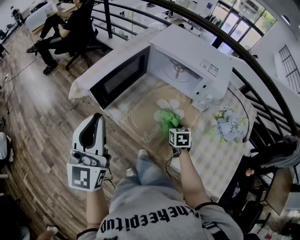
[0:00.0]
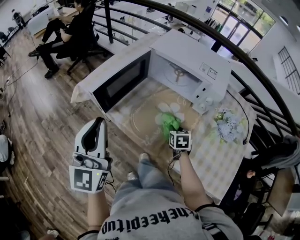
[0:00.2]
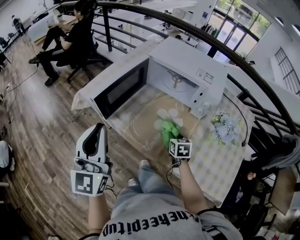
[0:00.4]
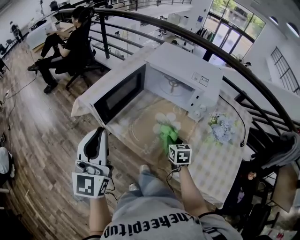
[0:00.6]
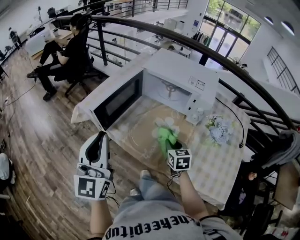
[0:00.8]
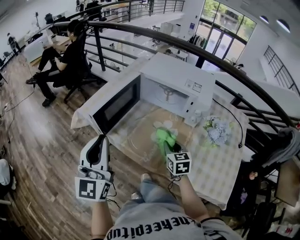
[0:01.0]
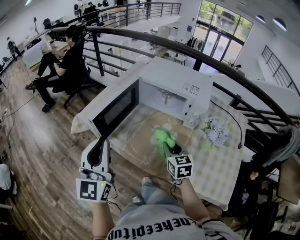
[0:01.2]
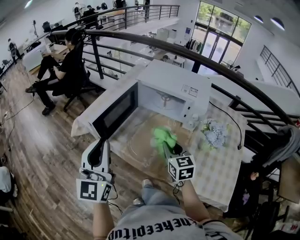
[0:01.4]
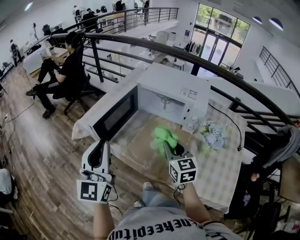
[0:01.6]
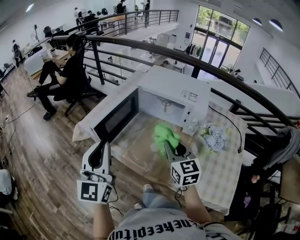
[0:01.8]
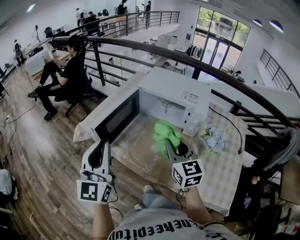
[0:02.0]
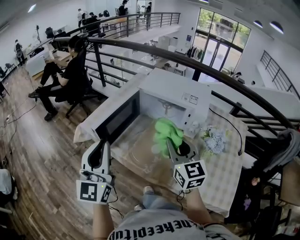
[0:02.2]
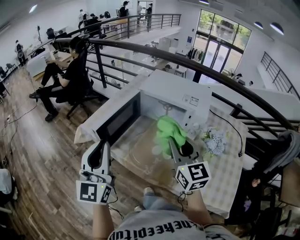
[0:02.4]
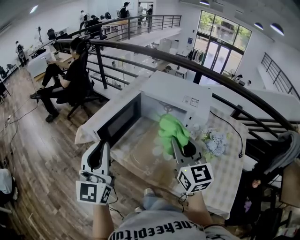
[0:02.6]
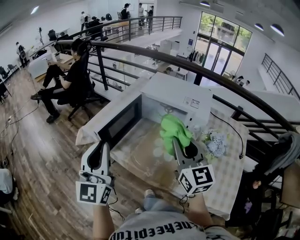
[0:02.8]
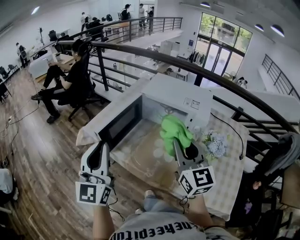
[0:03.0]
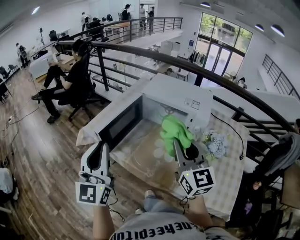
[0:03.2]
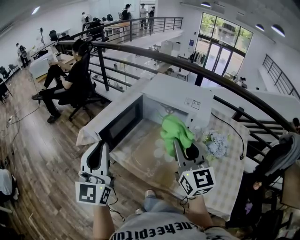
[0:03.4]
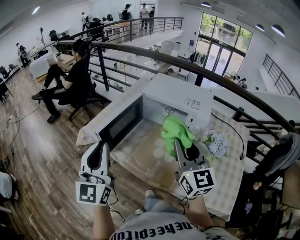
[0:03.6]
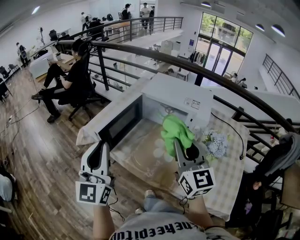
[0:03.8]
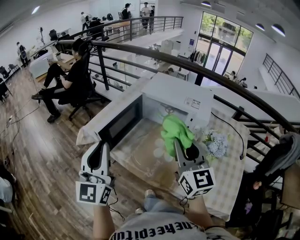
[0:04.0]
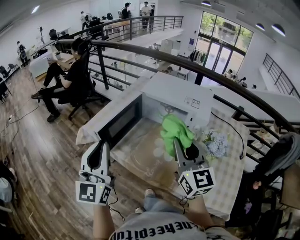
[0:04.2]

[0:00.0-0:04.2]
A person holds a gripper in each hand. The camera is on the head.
0:00.0 to 0:01.4: The right gripper shifts roughly 20 cm upward, and rotates approximately 30 degrees.
0:01.4 to 0:02.8: The right gripper goes roughly 20 cm upward, and turns by roughly 30 degrees.
0:02.8 to 0:04.2: Both grippers stay put.

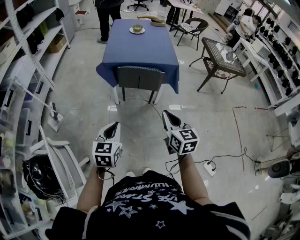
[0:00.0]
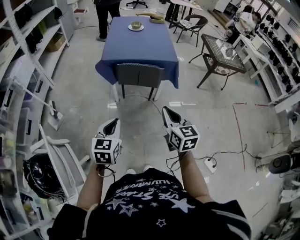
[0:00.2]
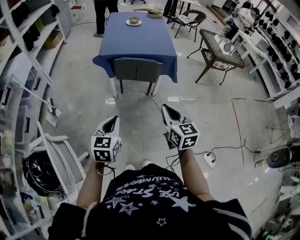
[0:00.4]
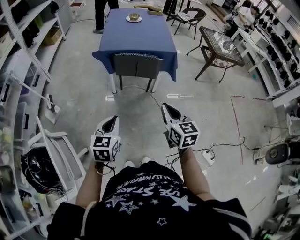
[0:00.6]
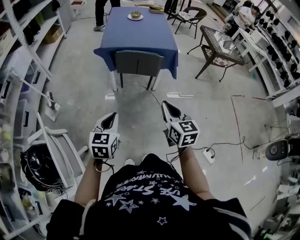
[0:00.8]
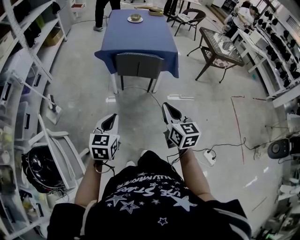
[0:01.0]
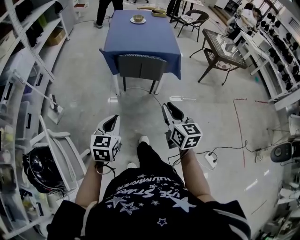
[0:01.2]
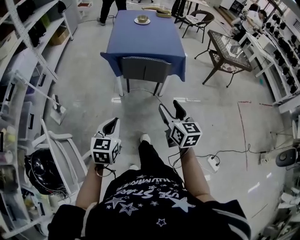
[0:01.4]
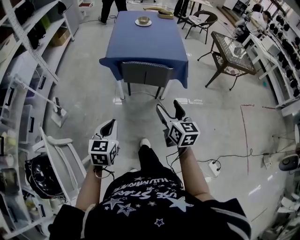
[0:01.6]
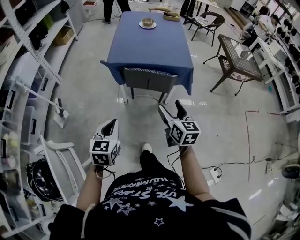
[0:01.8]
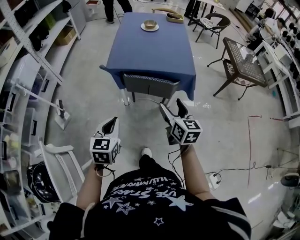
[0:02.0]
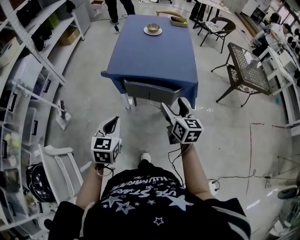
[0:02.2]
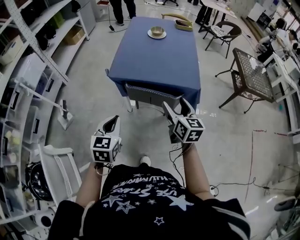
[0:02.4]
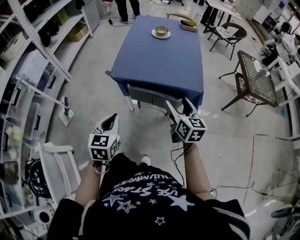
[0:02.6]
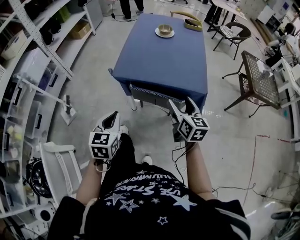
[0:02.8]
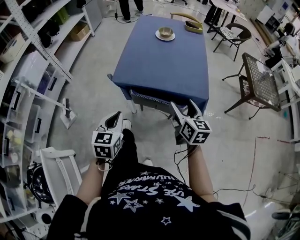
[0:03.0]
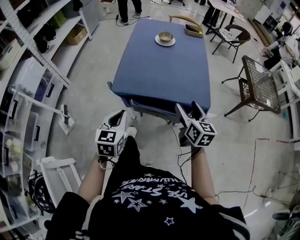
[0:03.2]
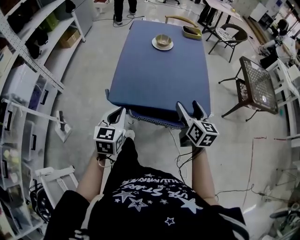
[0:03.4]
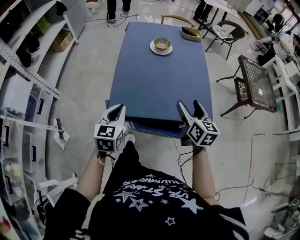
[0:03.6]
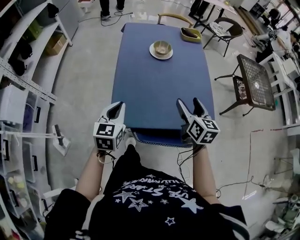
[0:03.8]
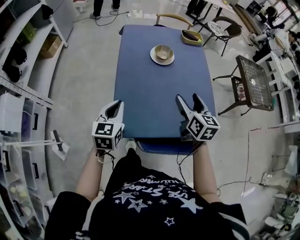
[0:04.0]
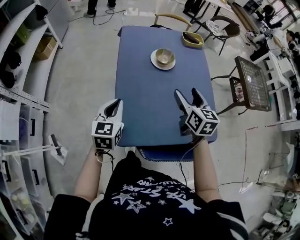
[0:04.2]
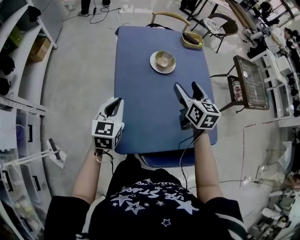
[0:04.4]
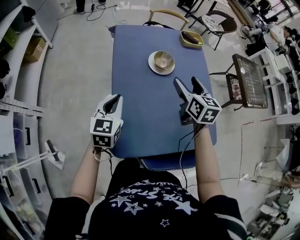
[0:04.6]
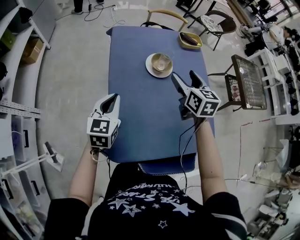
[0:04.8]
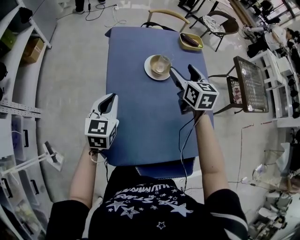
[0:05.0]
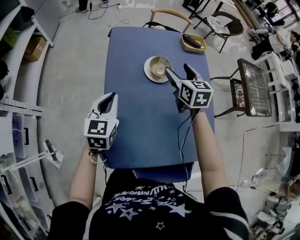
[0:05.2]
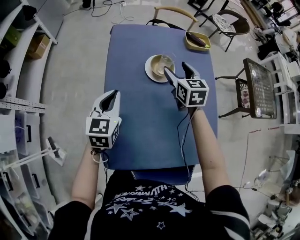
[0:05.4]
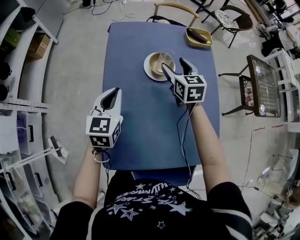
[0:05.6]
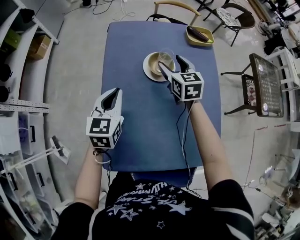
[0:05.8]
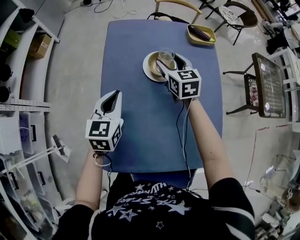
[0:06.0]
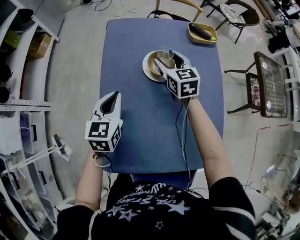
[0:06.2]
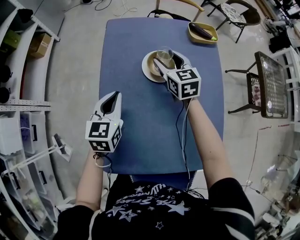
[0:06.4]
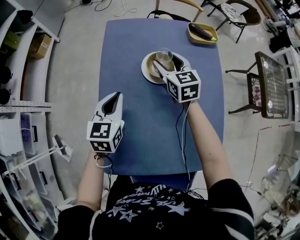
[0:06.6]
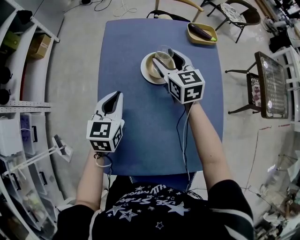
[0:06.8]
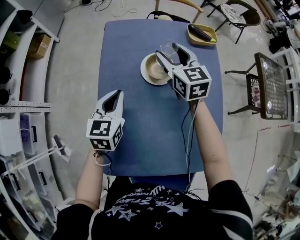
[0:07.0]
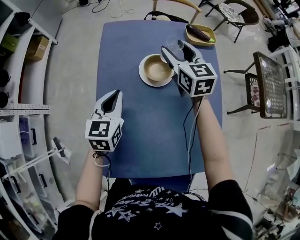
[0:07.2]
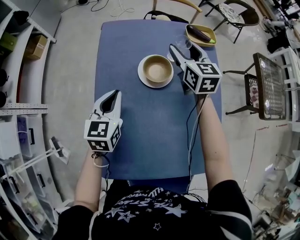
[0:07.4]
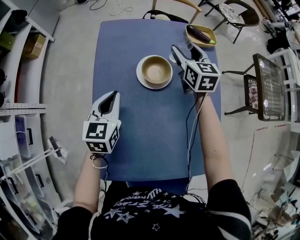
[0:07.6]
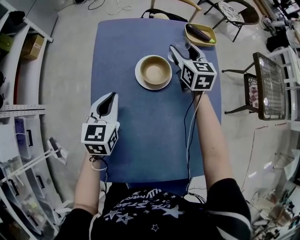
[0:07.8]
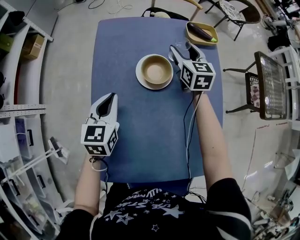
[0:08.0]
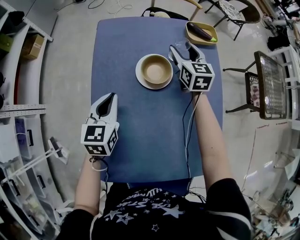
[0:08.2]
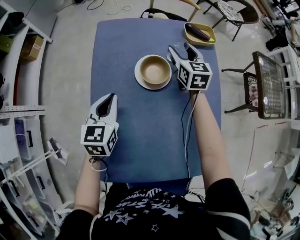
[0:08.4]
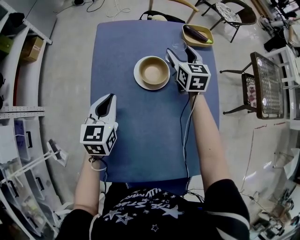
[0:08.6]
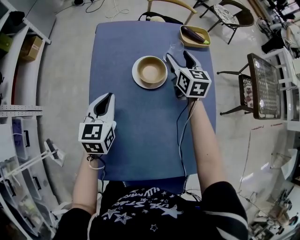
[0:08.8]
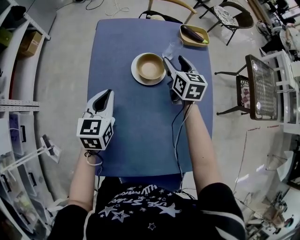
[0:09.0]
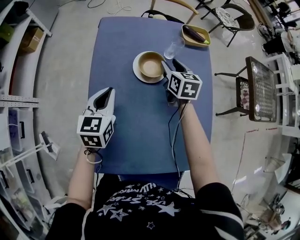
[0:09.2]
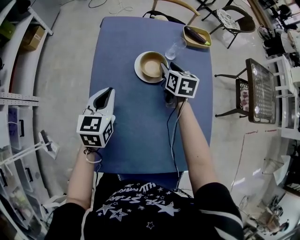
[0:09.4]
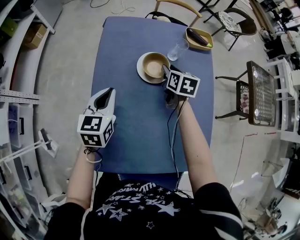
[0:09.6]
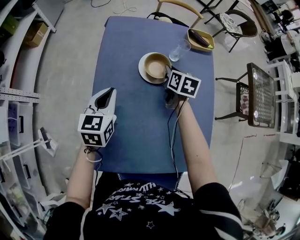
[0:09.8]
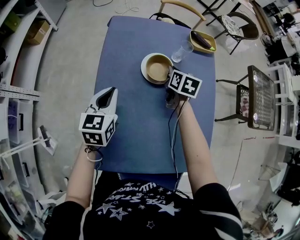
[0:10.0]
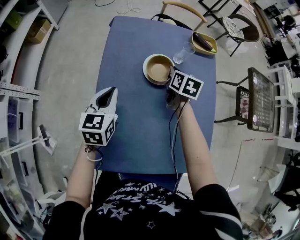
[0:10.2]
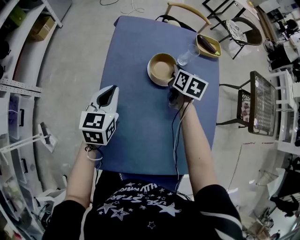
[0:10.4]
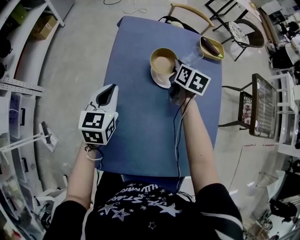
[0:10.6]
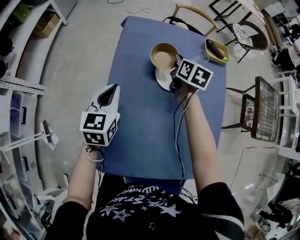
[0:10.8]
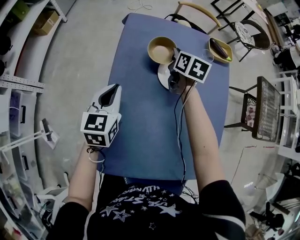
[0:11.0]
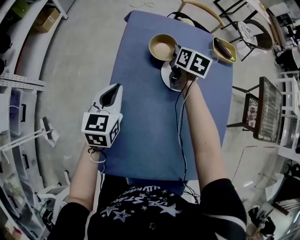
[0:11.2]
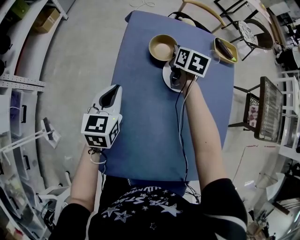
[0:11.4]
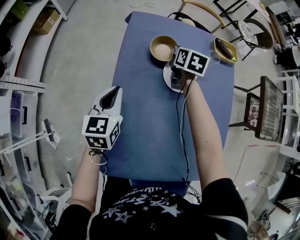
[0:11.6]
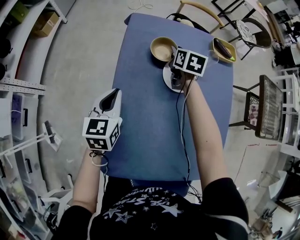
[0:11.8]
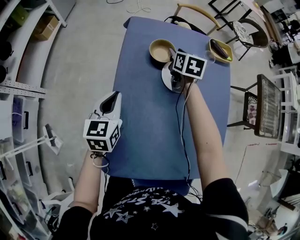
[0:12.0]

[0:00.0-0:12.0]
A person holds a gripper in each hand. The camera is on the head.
0:00.0 to 0:01.6: The right gripper goes about 5 cm forward, and opens; the left gripper shifts by roughly 5 cm.
0:01.6 to 0:03.0: The grippers both shift forward by some 30 cm.
0:03.0 to 0:04.4: The two grippers travel together, forward, roughly 40 cm.
0:04.4 to 0:06.0: The left gripper is displaced forward and to the right by roughly 15 cm. Meanwhile the right gripper travels forward and downward by approximately 25 cm.
0:06.0 to 0:07.6: The right gripper heads to the right and forward, covering roughly 10 cm.
0:07.6 to 0:09.0: The right gripper shifts by approximately 5 cm.
0:09.0 to 0:10.4: The right gripper moves some 5 cm, and closes its fingers.
0:10.4 to 0:12.0: The right gripper shifts some 10 cm forward and to the left, and opens up. Meanwhile the left gripper shifts approximately 5 cm to the left.

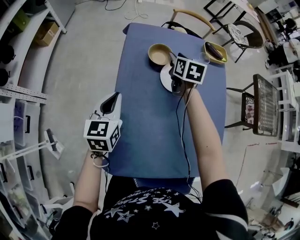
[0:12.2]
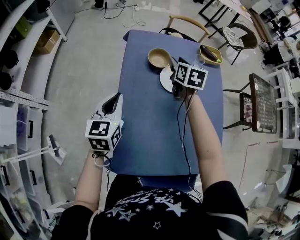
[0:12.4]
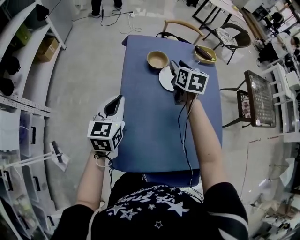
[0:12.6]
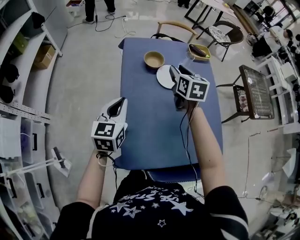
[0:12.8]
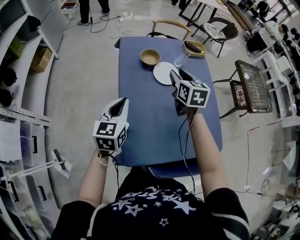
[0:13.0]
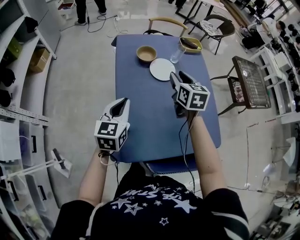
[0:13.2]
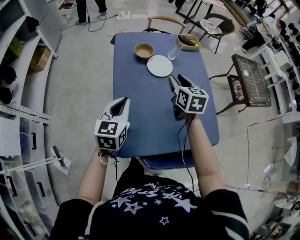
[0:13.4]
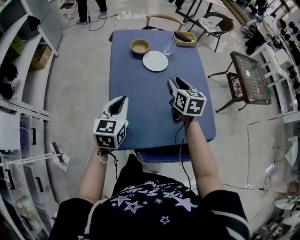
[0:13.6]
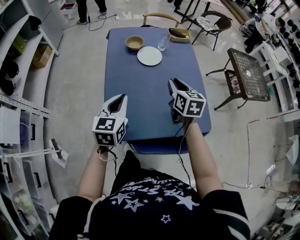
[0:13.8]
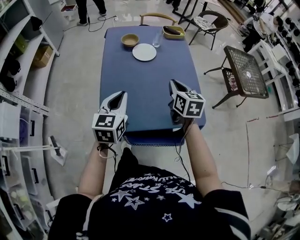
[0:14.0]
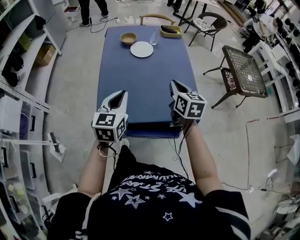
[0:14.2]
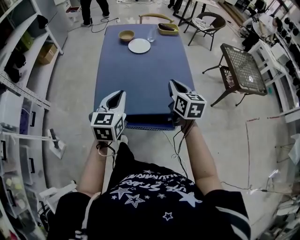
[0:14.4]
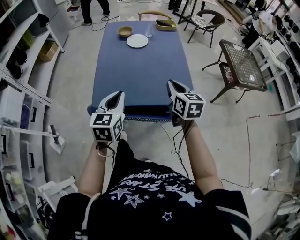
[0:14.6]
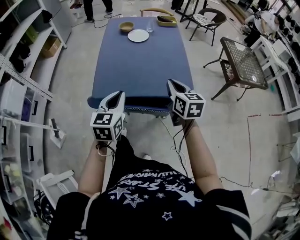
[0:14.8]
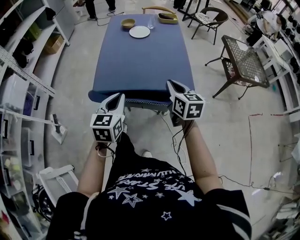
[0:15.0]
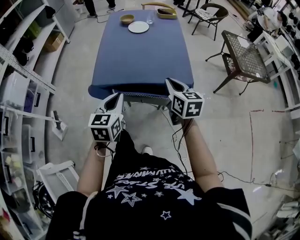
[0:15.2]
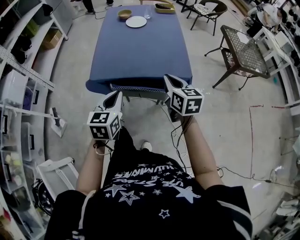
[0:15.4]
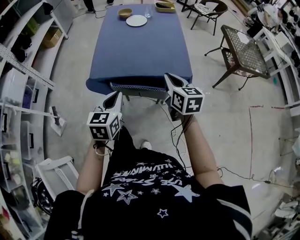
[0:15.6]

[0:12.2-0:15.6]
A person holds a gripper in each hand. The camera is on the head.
0:12.2 to 0:13.8: The right gripper heads backward and to the right, covering roughly 35 cm, while the left gripper goes some 20 cm backward and to the right.
0:13.8 to 0:15.6: The grippers both shift backward by roughly 30 cm.

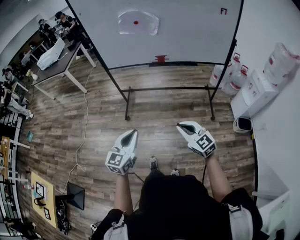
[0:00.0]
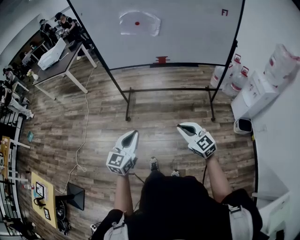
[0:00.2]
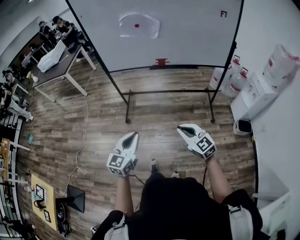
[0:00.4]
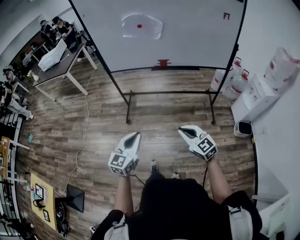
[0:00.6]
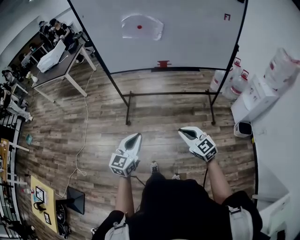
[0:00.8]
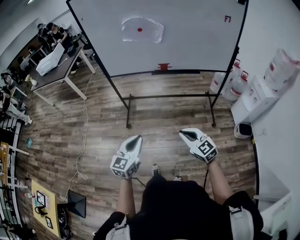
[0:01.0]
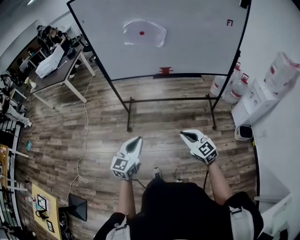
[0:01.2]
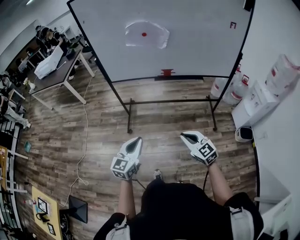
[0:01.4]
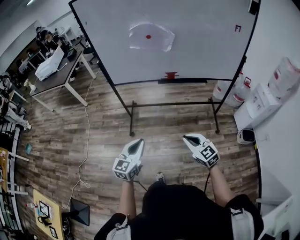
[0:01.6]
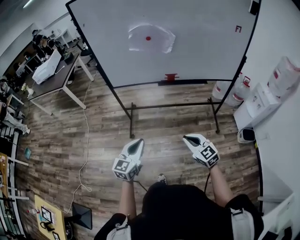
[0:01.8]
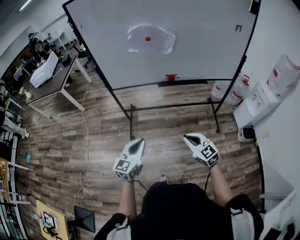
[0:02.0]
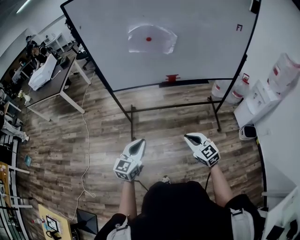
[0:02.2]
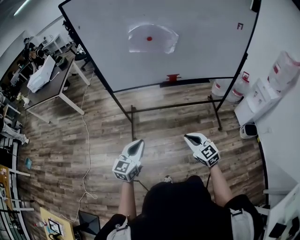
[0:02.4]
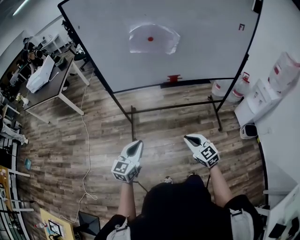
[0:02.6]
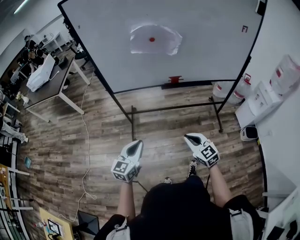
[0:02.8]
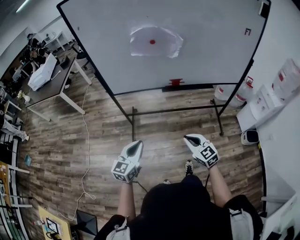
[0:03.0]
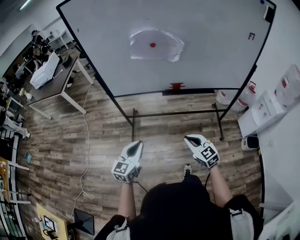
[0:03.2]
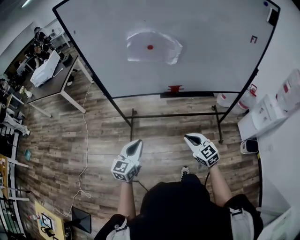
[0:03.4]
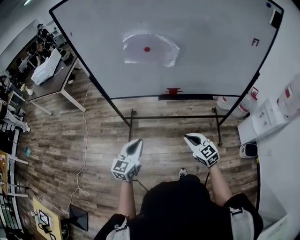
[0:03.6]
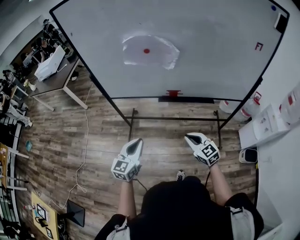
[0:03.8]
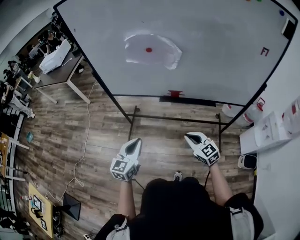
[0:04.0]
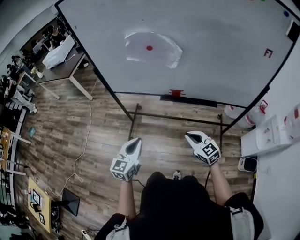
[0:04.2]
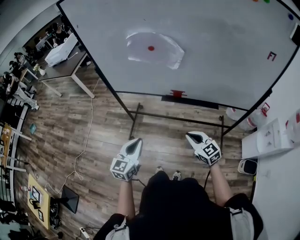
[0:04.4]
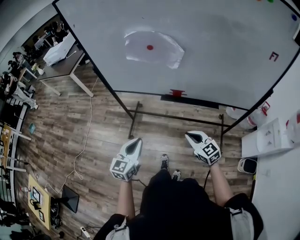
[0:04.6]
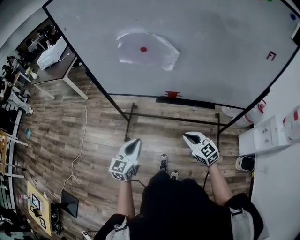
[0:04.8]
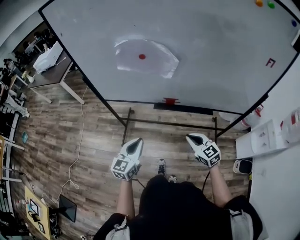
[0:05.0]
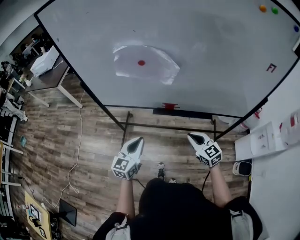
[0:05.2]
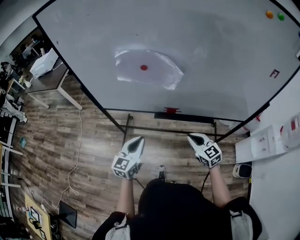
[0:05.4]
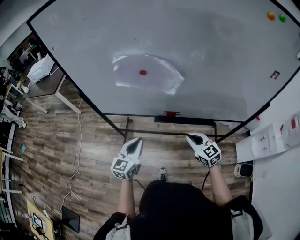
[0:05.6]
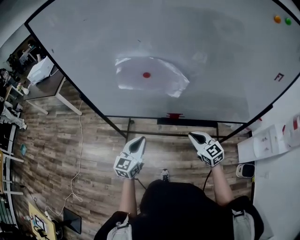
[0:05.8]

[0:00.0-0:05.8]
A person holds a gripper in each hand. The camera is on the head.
0:00.0 to 0:01.4: Both grippers move forward, some 10 cm.
0:01.4 to 0:02.8: Both grippers travel together forward and to the left, about 15 cm.
0:02.8 to 0:04.4: The grippers both shift to the right and forward by some 20 cm.
0:04.4 to 0:05.8: Both grippers move forward, roughly 20 cm.
